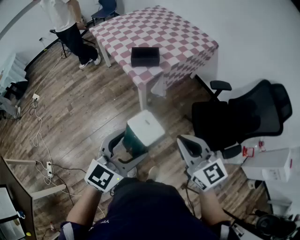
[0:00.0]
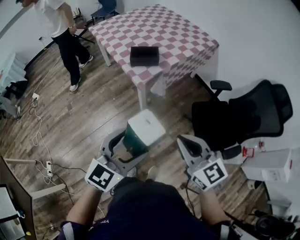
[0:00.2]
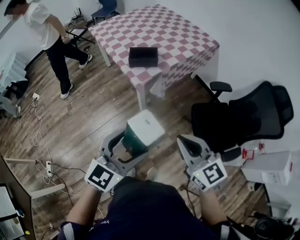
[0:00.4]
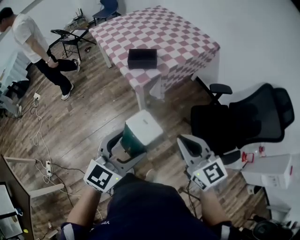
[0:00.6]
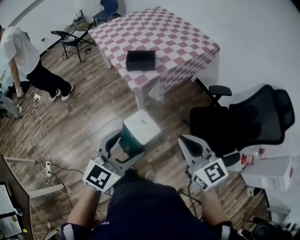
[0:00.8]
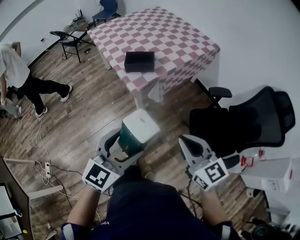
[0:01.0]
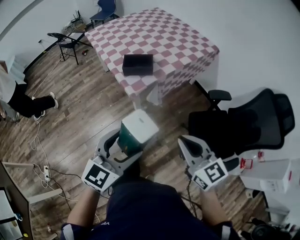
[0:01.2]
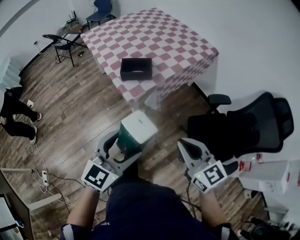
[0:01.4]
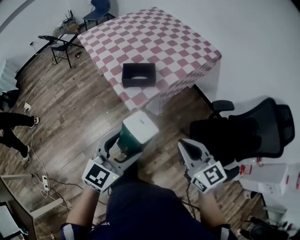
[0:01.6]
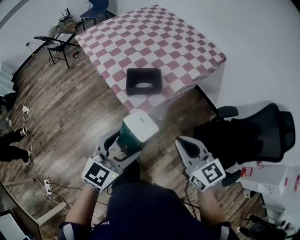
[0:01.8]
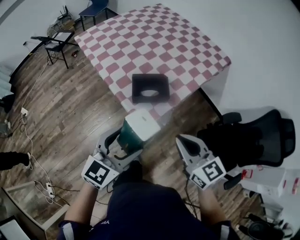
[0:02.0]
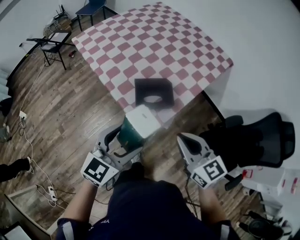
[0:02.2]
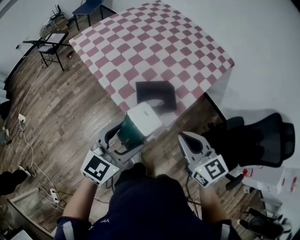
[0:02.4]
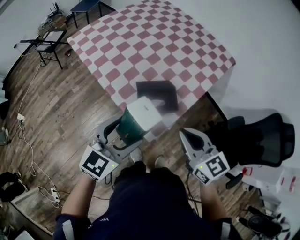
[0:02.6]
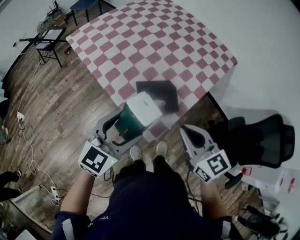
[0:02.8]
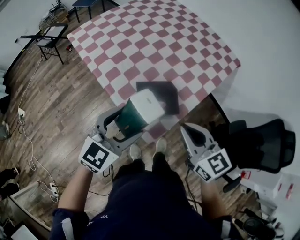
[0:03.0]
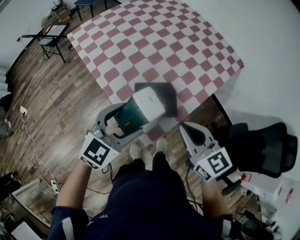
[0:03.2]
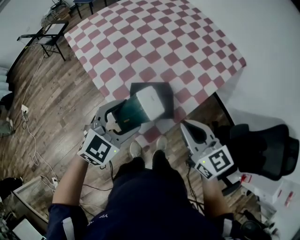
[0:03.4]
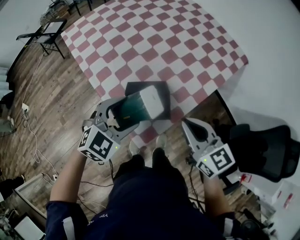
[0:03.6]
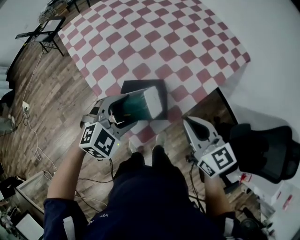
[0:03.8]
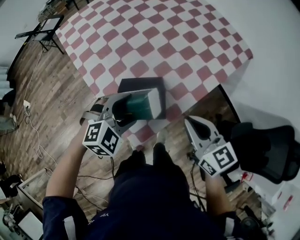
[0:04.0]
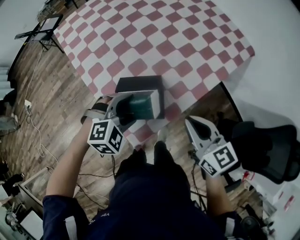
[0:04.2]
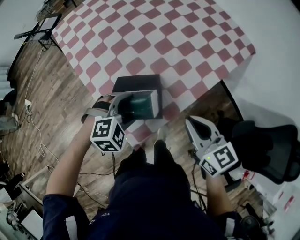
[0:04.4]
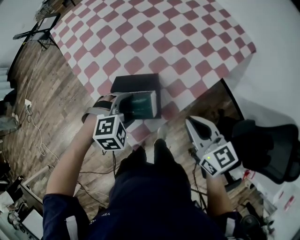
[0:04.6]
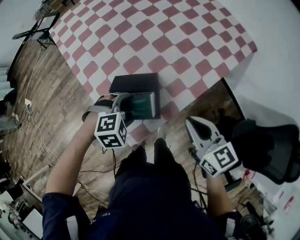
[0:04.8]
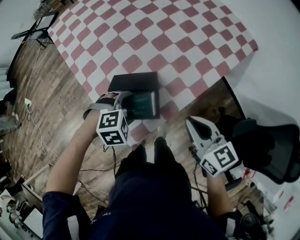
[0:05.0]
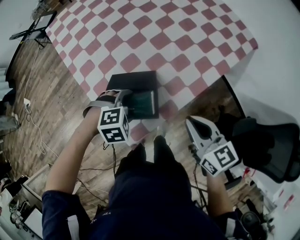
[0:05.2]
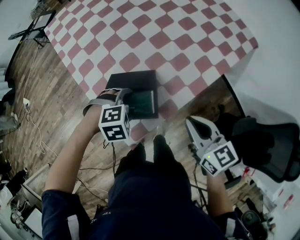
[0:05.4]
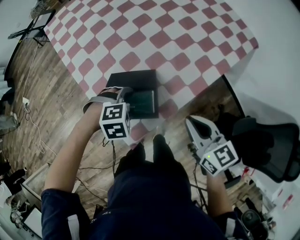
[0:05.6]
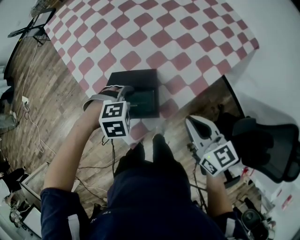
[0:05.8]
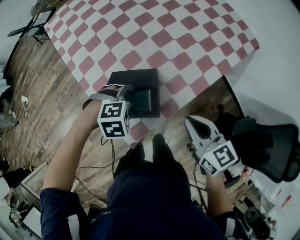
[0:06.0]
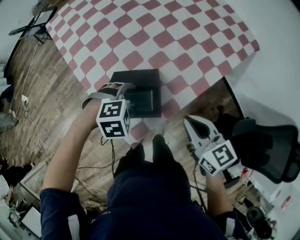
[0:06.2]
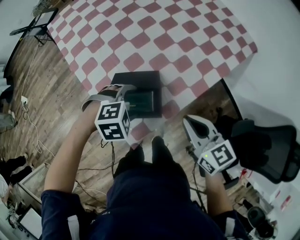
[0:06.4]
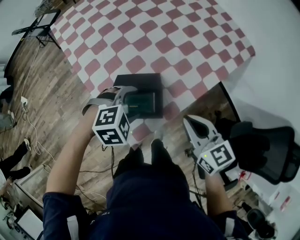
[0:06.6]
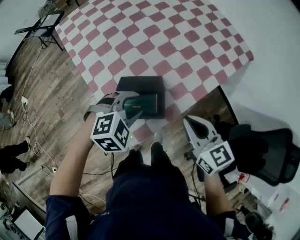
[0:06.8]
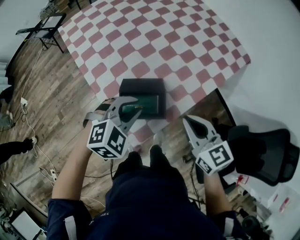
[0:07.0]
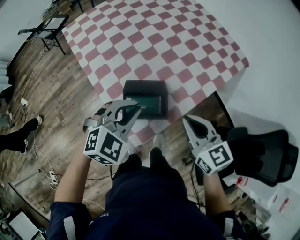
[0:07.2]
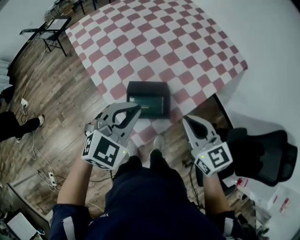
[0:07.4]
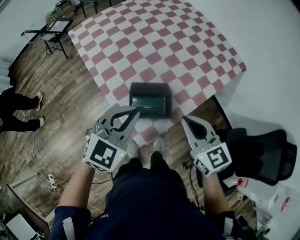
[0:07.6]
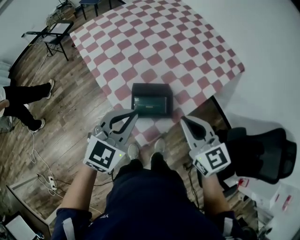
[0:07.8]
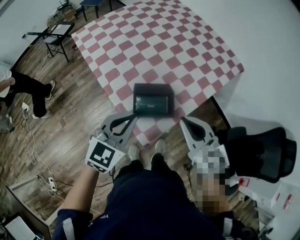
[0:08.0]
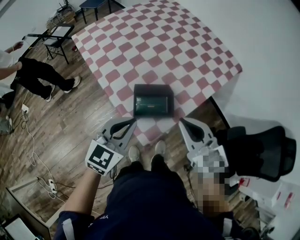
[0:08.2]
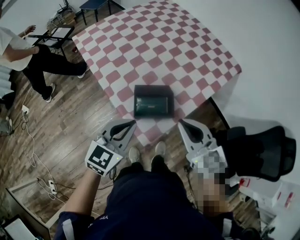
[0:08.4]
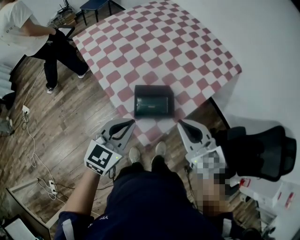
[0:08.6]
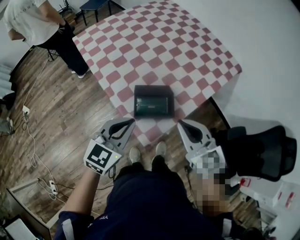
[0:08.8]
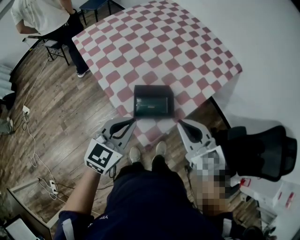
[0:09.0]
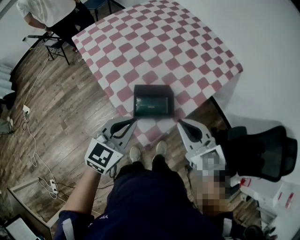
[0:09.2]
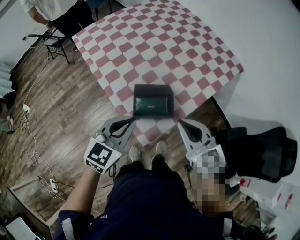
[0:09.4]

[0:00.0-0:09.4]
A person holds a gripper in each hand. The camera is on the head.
0:00.0 to 0:01.6: Both grippers travel together forward, approximately 20 cm.
0:01.6 to 0:03.2: The two grippers go approximately 30 cm forward.
0:03.2 to 0:04.8: The left gripper is displaced downward and to the right by some 20 cm, and tips its fingers downward by approximately 50 degrees, while the right gripper travels to the right, downward and forward by approximately 15 cm.
0:04.8 to 0:06.2: There are only small adjustments of the grippers.
0:06.2 to 0:07.8: The right gripper travels upward and to the left by roughly 15 cm. The left gripper shifts about 20 cm upward, points its fingers some 50 degrees further upward, and closes up.
0:07.8 to 0:09.4: The grippers make only small movements.

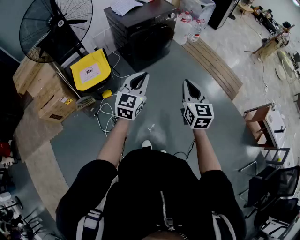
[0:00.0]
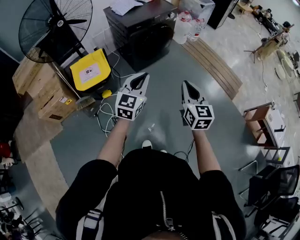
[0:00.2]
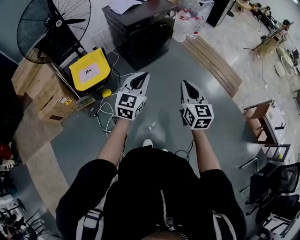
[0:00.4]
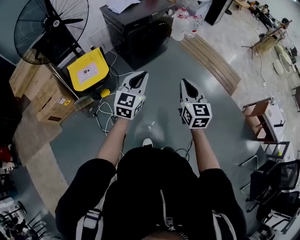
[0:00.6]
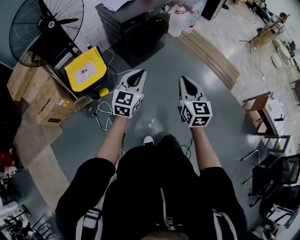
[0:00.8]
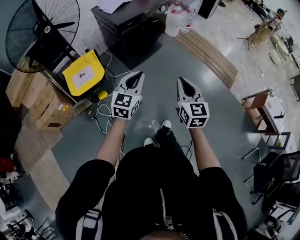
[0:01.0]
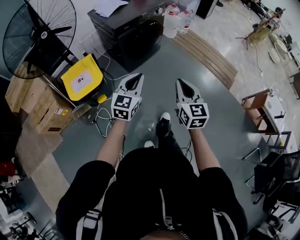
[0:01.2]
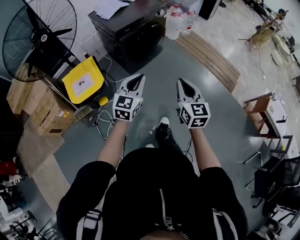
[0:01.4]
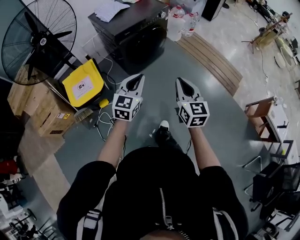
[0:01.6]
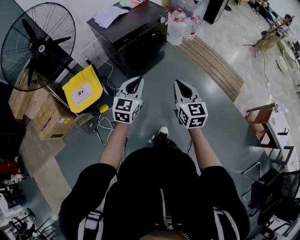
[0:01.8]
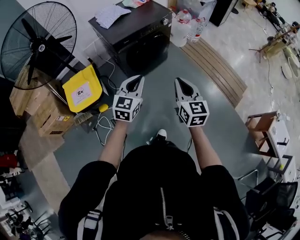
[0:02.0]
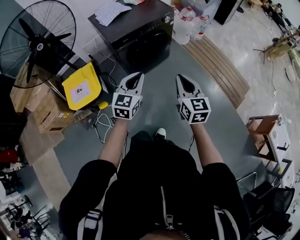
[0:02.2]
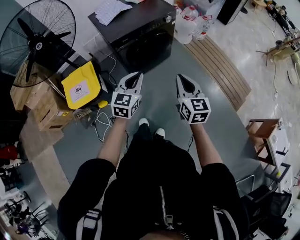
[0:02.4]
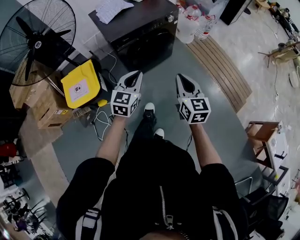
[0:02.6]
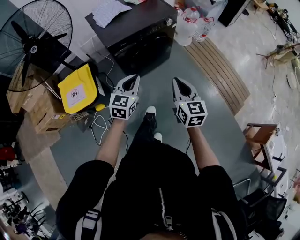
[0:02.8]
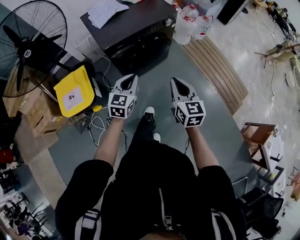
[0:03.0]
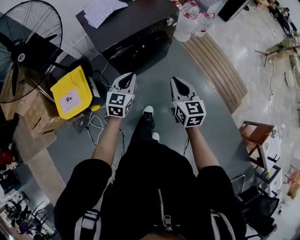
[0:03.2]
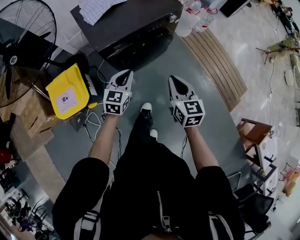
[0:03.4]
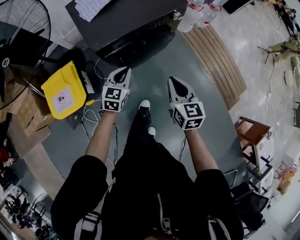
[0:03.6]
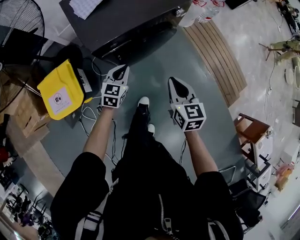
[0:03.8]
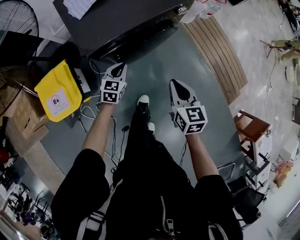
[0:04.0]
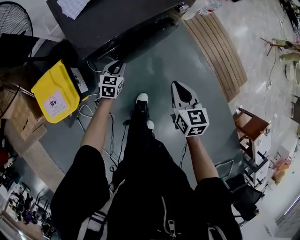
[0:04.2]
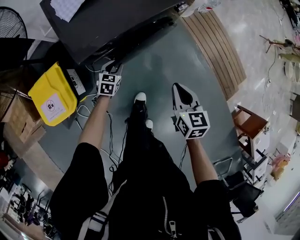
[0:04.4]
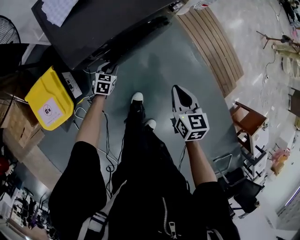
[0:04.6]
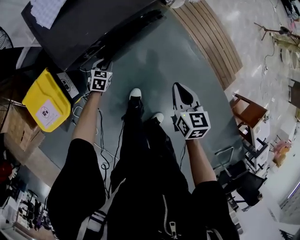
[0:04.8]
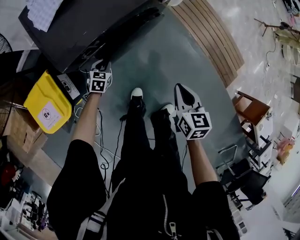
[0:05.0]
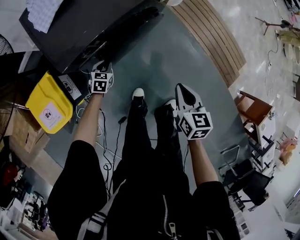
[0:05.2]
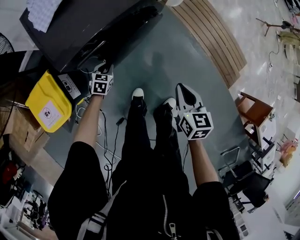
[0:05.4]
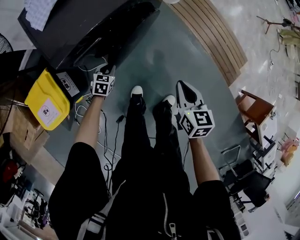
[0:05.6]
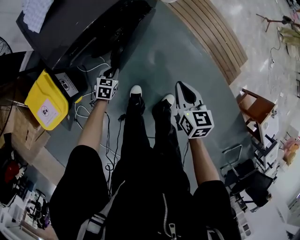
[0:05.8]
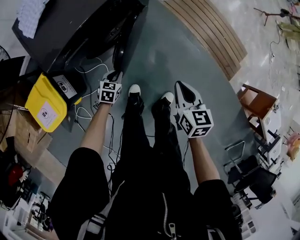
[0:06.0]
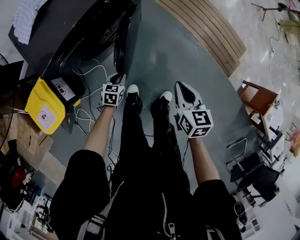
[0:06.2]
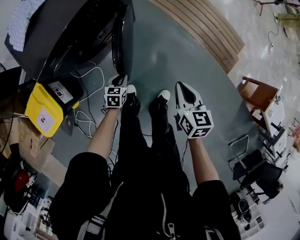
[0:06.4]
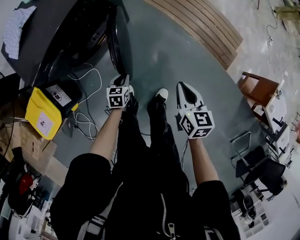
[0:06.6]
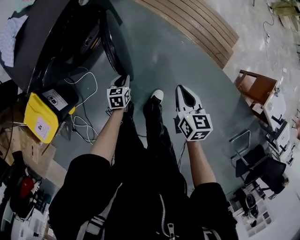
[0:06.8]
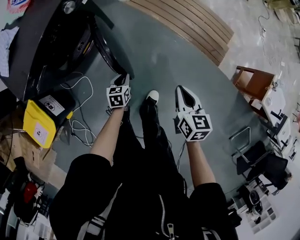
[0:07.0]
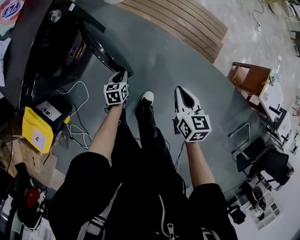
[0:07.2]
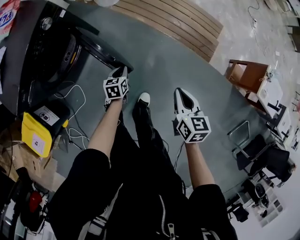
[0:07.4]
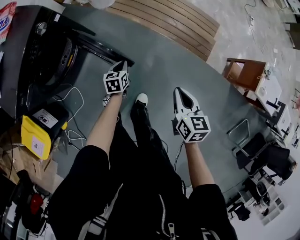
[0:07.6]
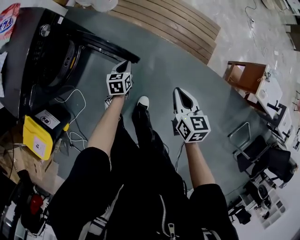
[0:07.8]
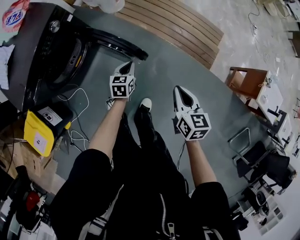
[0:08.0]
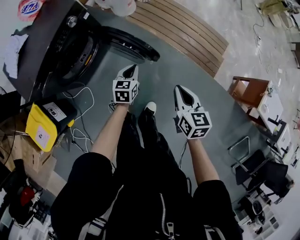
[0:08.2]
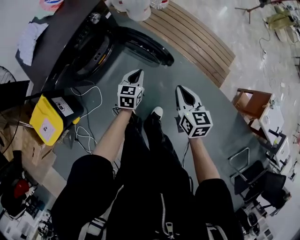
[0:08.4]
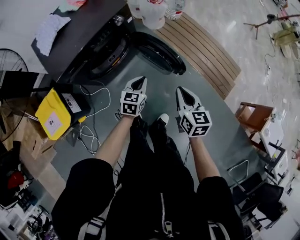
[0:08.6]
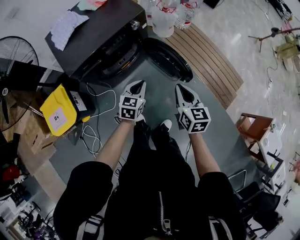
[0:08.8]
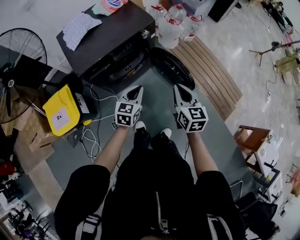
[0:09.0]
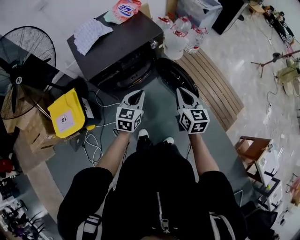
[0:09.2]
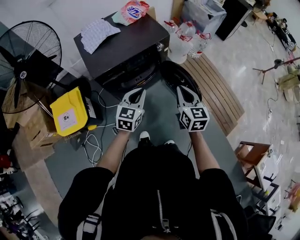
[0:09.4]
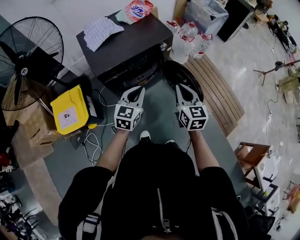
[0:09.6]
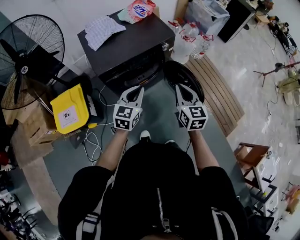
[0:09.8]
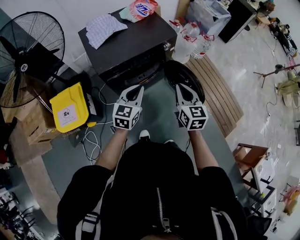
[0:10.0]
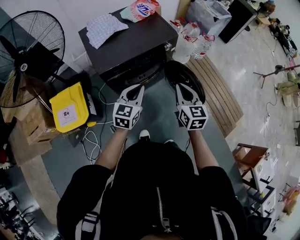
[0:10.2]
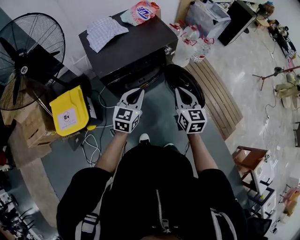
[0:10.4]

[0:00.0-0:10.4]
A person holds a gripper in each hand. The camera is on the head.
0:00.0 to 0:01.4: The grippers both shift forward by roughly 10 cm.
0:01.4 to 0:03.0: Both grippers travel together forward, about 35 cm.
0:03.0 to 0:04.4: The left gripper moves downward and forward, roughly 40 cm, changes its angle by roughly 30 degrees, and opens up, while the right gripper goes roughly 25 cm forward and downward, and rotates approximately 20 degrees.
0:04.4 to 0:06.0: The left gripper moves to the right and backward, approximately 15 cm. The right gripper goes some 15 cm to the right.
0:06.0 to 0:07.4: Both grippers travel together to the right, roughly 35 cm.
0:07.4 to 0:09.0: The right gripper heads to the left and upward, covering some 35 cm, and turns by about 30 degrees. Meanwhile the left gripper travels upward and to the left by roughly 40 cm, and changes its angle by about 30 degrees.
0:09.0 to 0:10.4: The left gripper shifts about 15 cm to the left and upward; the right gripper goes approximately 10 cm to the left.

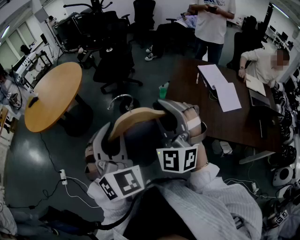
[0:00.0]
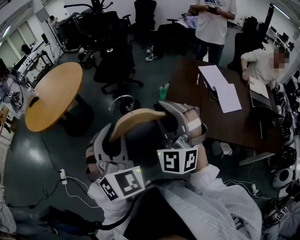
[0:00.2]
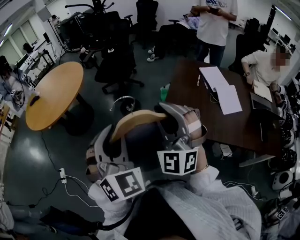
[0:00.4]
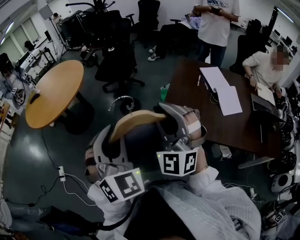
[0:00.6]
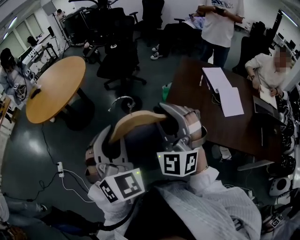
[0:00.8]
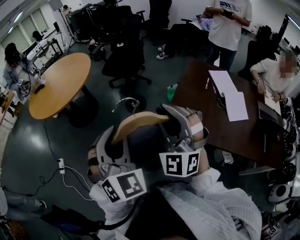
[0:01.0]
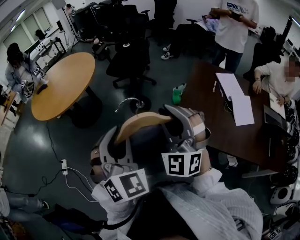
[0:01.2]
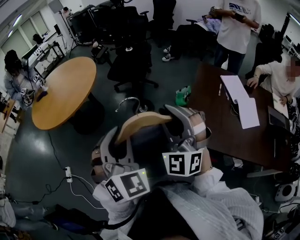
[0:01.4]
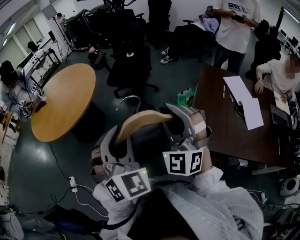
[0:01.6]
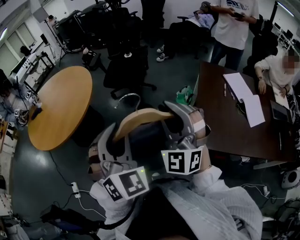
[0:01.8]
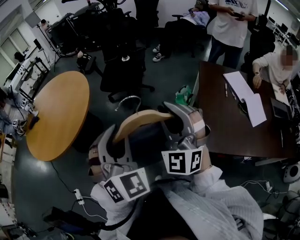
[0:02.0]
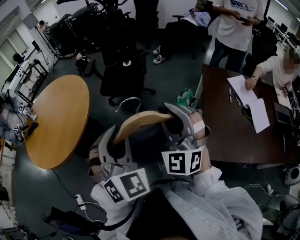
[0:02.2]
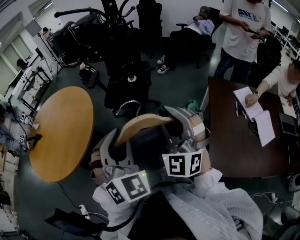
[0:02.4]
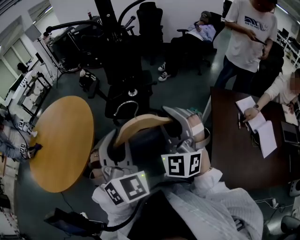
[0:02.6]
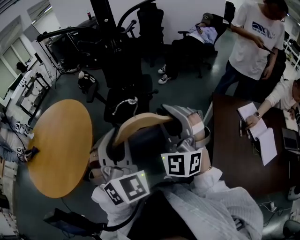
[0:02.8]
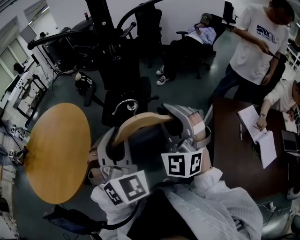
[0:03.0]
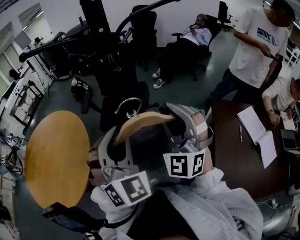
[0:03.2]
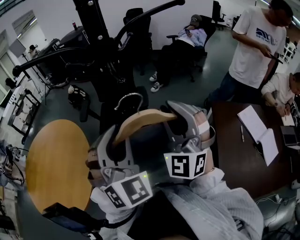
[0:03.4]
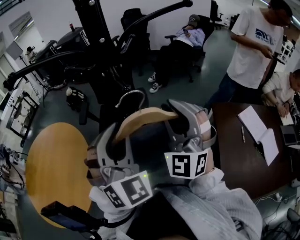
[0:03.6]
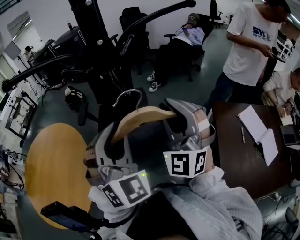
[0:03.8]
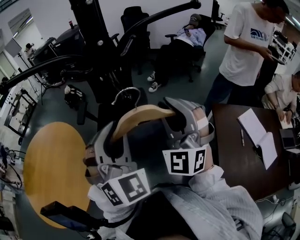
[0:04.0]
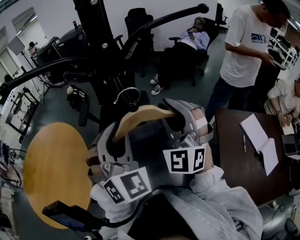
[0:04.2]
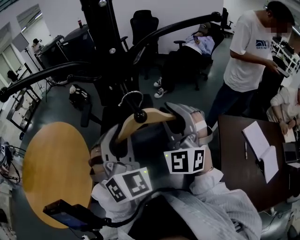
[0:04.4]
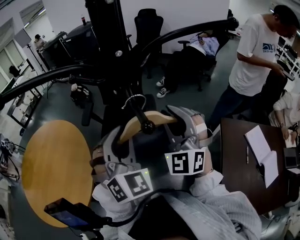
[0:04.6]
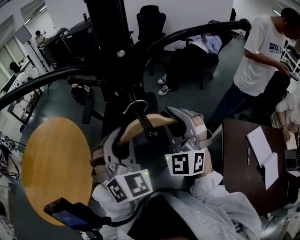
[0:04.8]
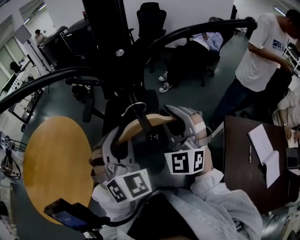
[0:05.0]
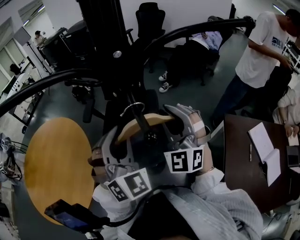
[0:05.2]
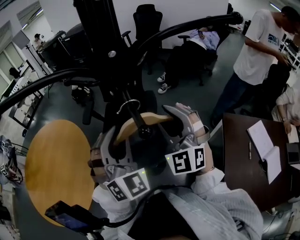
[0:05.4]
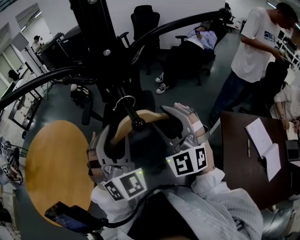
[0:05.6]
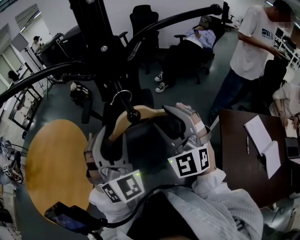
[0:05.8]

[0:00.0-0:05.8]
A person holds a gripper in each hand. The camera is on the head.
0:00.0 to 0:01.4: Both grippers travel together forward and to the left, approximately 15 cm.
0:01.4 to 0:02.8: The two grippers travel together, forward, some 50 cm.
0:02.8 to 0:04.4: The two grippers go roughly 20 cm forward.
0:04.4 to 0:05.8: The left gripper opens; the right gripper opens its fingers.
